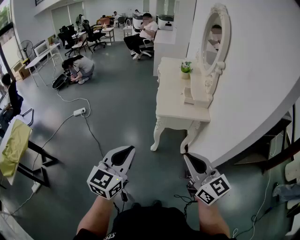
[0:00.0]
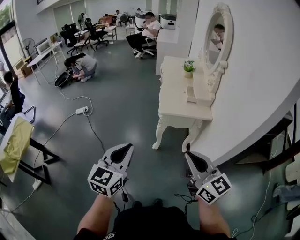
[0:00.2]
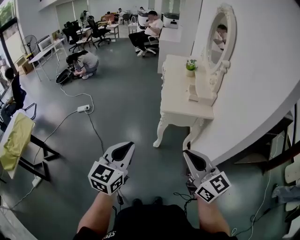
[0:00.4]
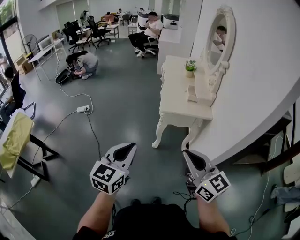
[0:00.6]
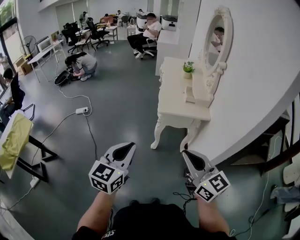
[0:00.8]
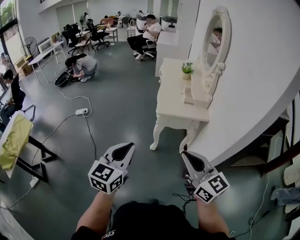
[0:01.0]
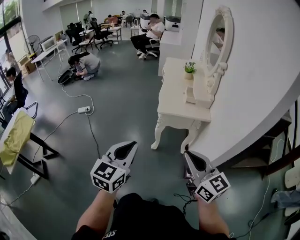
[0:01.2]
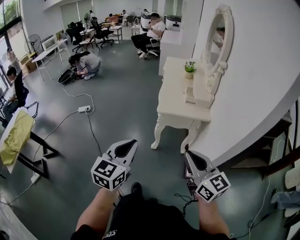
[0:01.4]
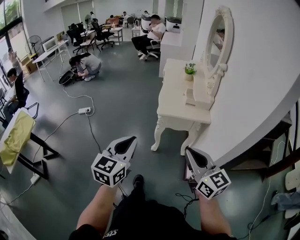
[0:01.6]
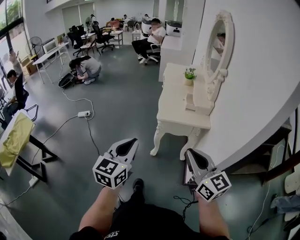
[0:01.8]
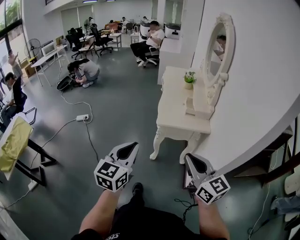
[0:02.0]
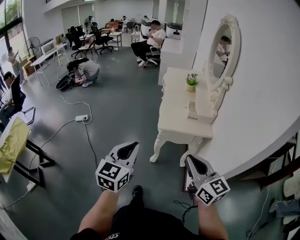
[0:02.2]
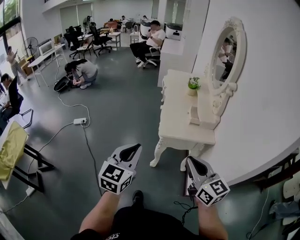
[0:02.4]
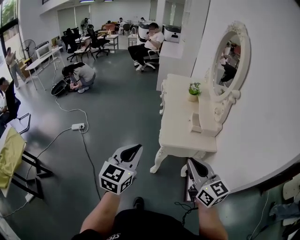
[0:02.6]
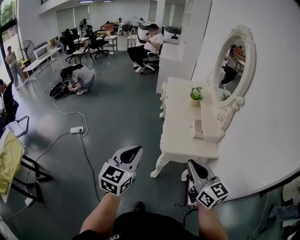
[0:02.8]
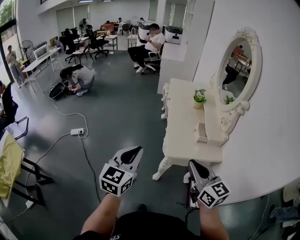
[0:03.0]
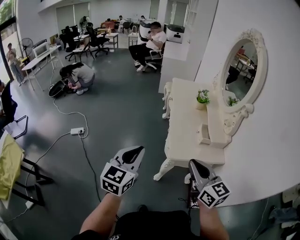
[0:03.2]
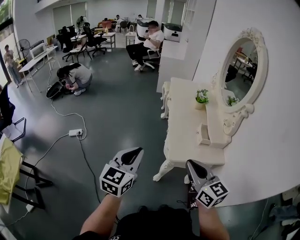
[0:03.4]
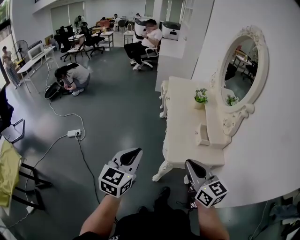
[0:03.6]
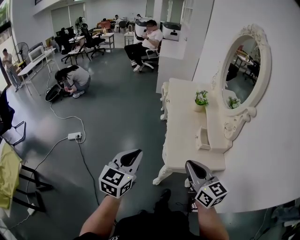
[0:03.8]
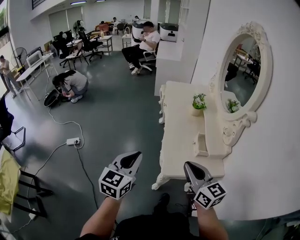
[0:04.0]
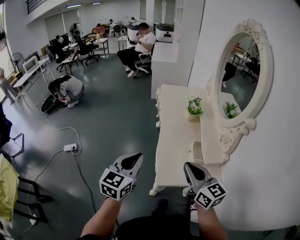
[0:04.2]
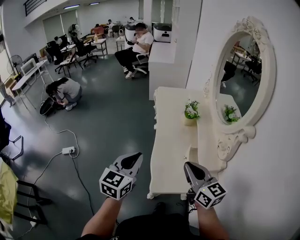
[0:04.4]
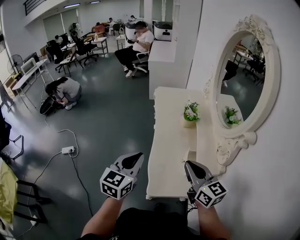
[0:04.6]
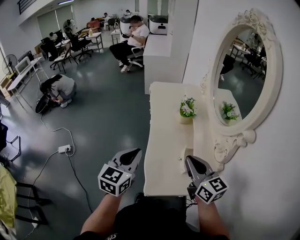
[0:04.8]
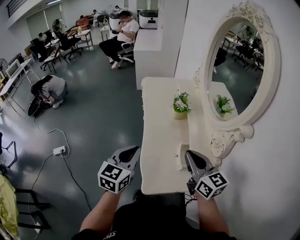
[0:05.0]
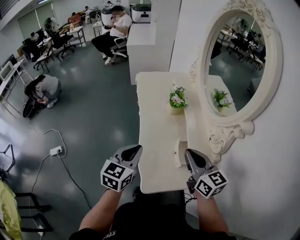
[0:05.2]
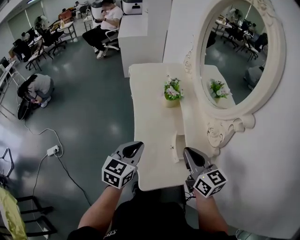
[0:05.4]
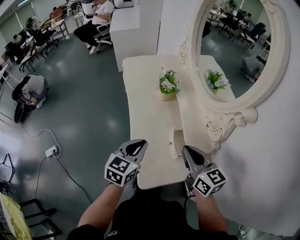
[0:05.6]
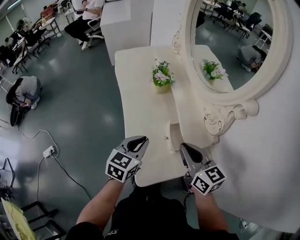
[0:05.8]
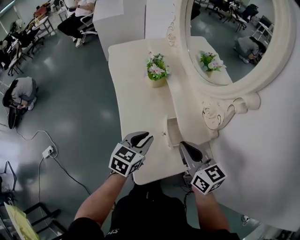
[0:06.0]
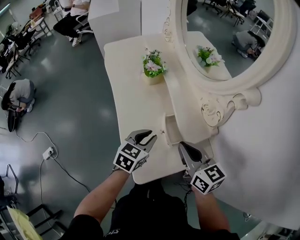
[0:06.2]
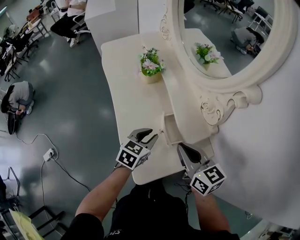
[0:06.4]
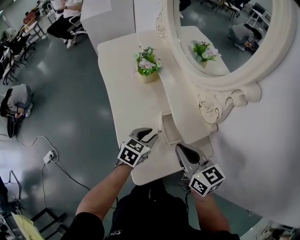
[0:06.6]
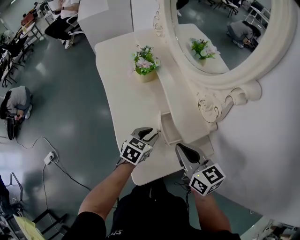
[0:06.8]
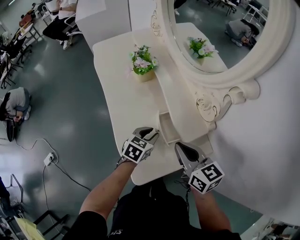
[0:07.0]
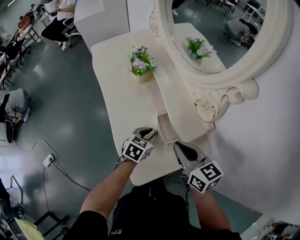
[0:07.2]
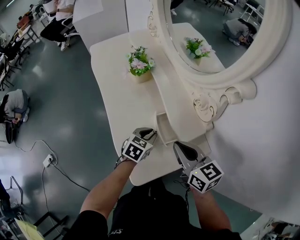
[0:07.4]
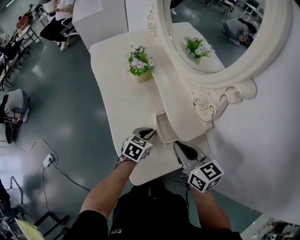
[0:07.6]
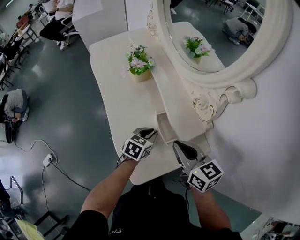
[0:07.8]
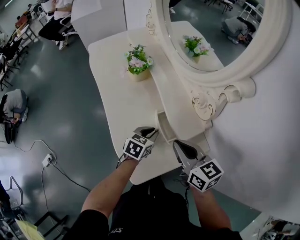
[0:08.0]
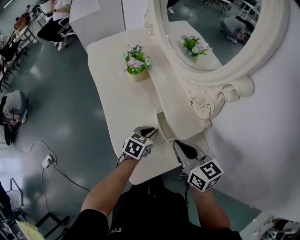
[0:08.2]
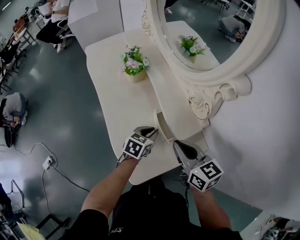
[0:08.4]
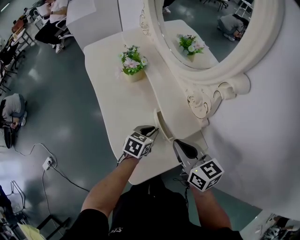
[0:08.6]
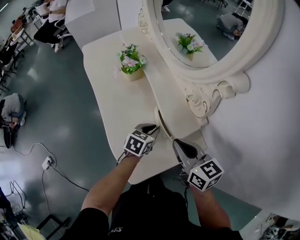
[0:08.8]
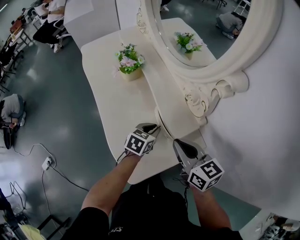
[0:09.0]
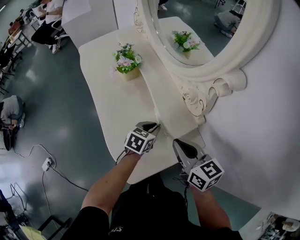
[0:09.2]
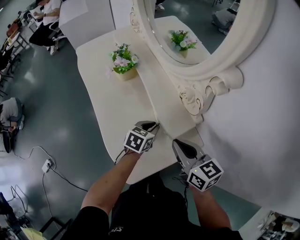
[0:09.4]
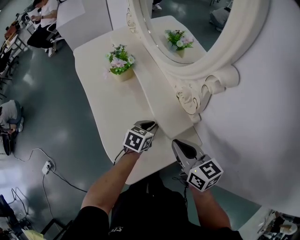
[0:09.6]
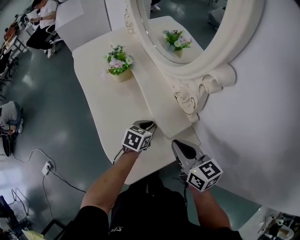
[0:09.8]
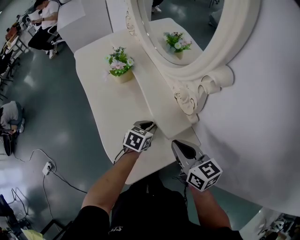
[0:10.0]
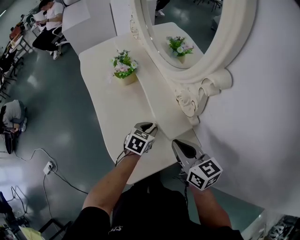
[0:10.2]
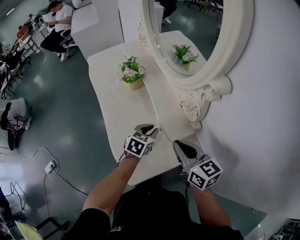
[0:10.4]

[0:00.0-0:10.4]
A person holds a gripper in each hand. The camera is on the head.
0:00.0 to 0:01.4: There are only small adjustments of the grippers.
0:01.4 to 0:03.0: The grippers both shift forward by approximately 30 cm.
0:03.0 to 0:04.4: The right gripper shifts about 25 cm forward, while the left gripper shifts some 30 cm forward and to the right.
0:04.4 to 0:06.0: The left gripper is displaced downward, to the right and forward by about 25 cm, and swivels about 30 degrees; the right gripper heads downward, forward and to the right, covering roughly 15 cm, and turns by some 20 degrees.
0:06.0 to 0:07.4: The left gripper goes some 15 cm downward and to the right.
0:07.4 to 0:09.0: The left gripper changes place by about 5 cm.
0:09.0 to 0:10.4: The grippers make only small movements.

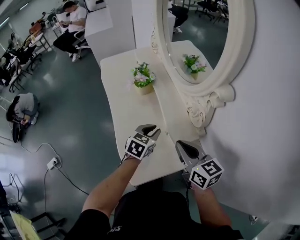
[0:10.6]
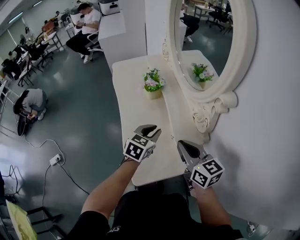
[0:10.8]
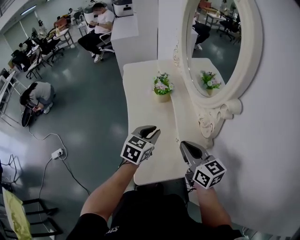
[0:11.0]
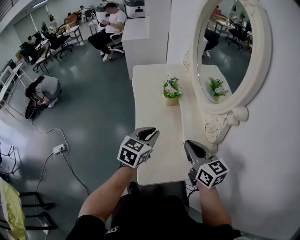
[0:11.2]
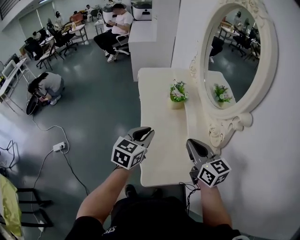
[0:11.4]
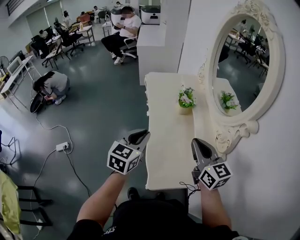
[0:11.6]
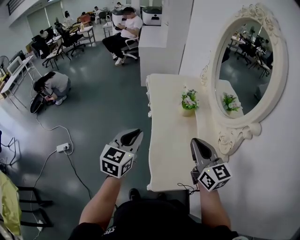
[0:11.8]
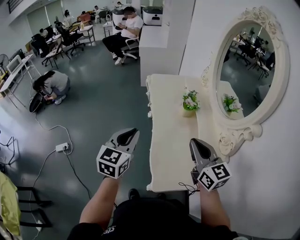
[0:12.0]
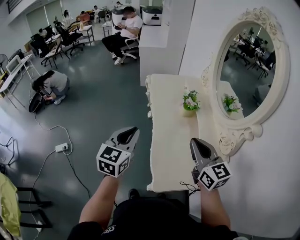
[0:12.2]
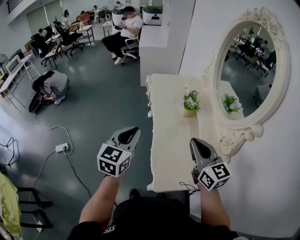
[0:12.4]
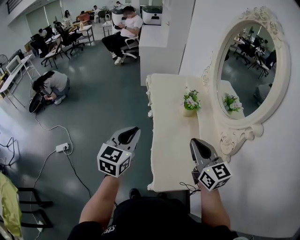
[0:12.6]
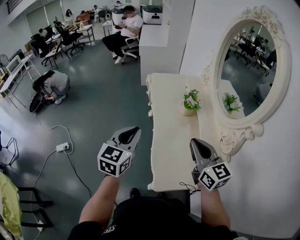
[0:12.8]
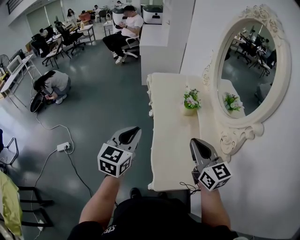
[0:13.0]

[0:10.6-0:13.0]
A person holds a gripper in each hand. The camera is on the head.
0:10.6 to 0:11.8: The right gripper goes roughly 15 cm to the left and upward, and changes its angle by about 20 degrees. The left gripper is displaced to the left and upward by approximately 35 cm, and turns by some 40 degrees.
0:11.8 to 0:13.0: The grippers move only a little.

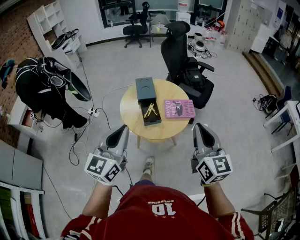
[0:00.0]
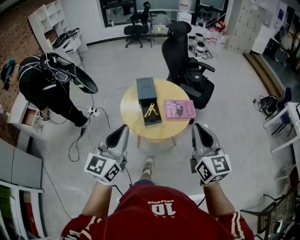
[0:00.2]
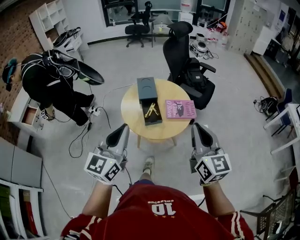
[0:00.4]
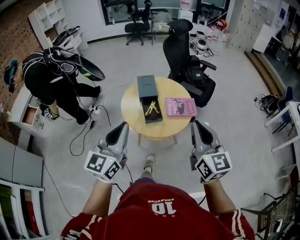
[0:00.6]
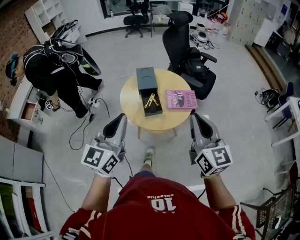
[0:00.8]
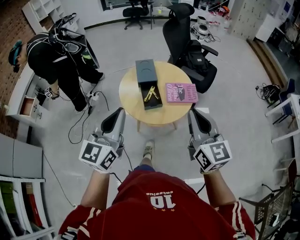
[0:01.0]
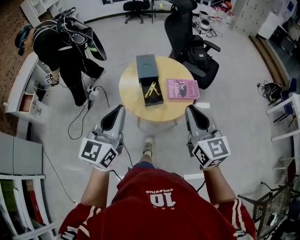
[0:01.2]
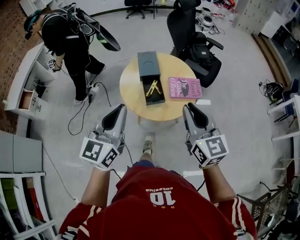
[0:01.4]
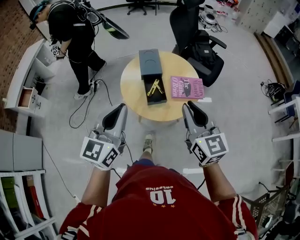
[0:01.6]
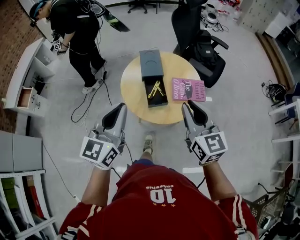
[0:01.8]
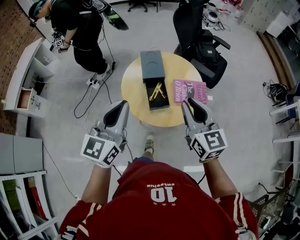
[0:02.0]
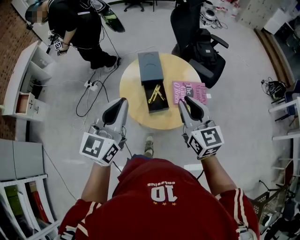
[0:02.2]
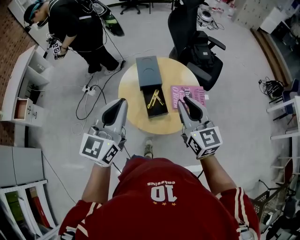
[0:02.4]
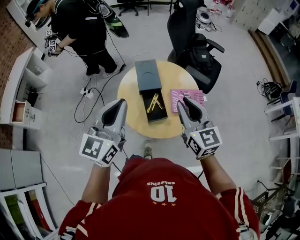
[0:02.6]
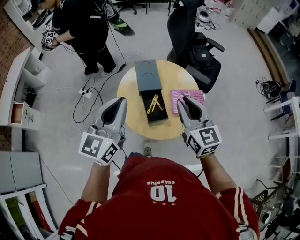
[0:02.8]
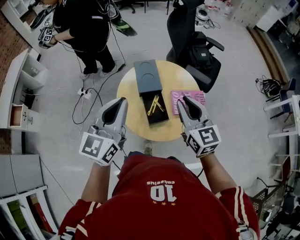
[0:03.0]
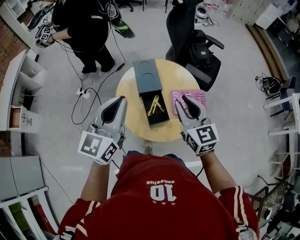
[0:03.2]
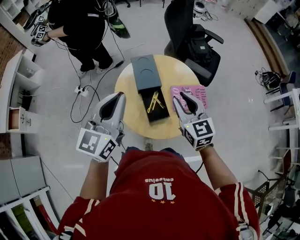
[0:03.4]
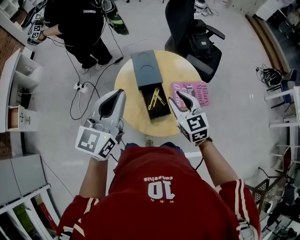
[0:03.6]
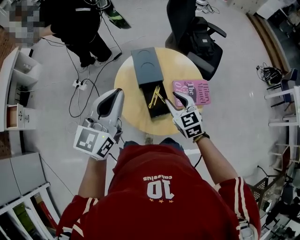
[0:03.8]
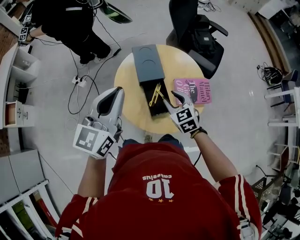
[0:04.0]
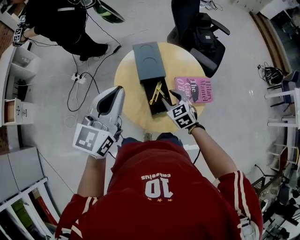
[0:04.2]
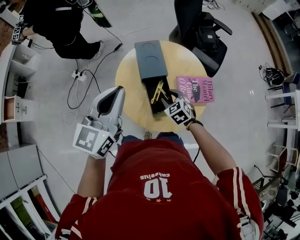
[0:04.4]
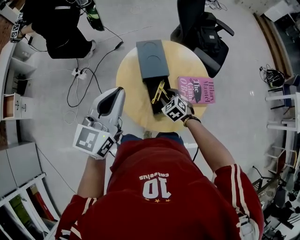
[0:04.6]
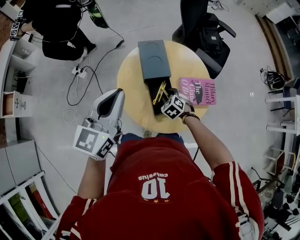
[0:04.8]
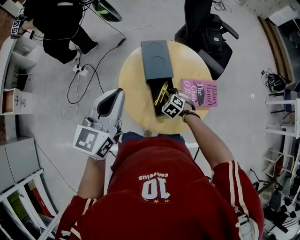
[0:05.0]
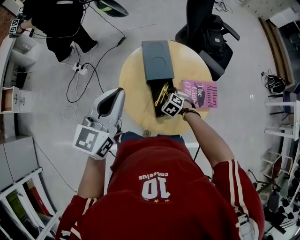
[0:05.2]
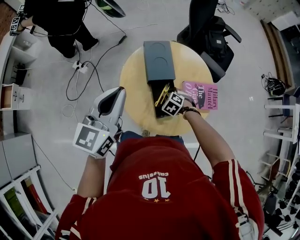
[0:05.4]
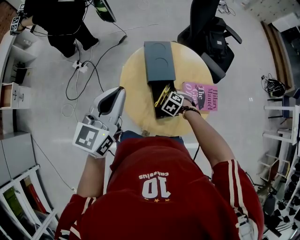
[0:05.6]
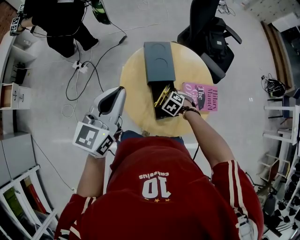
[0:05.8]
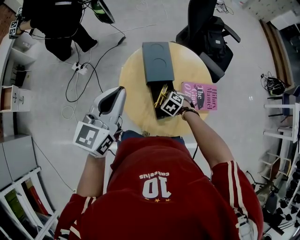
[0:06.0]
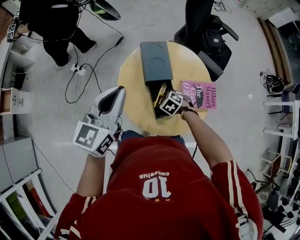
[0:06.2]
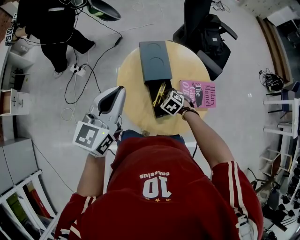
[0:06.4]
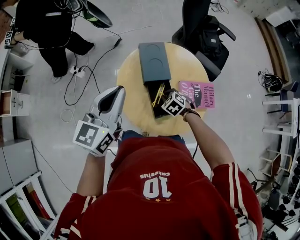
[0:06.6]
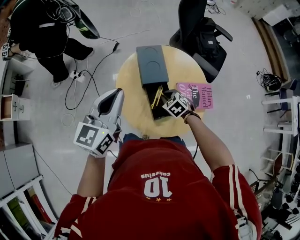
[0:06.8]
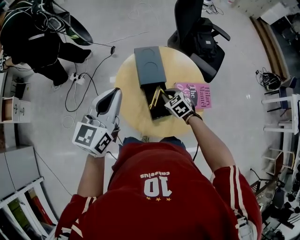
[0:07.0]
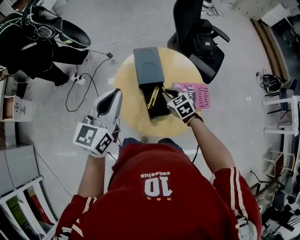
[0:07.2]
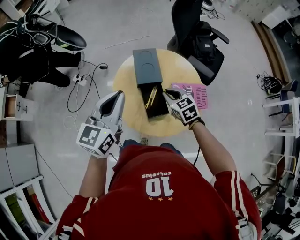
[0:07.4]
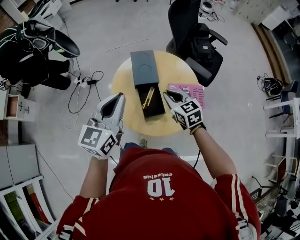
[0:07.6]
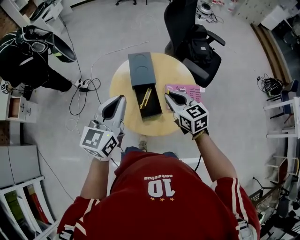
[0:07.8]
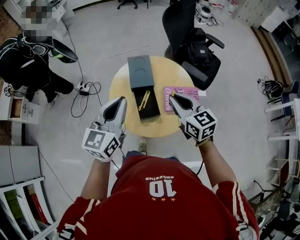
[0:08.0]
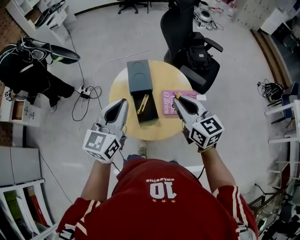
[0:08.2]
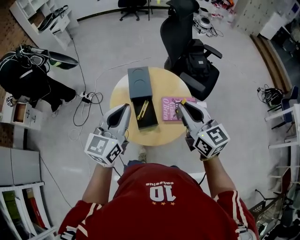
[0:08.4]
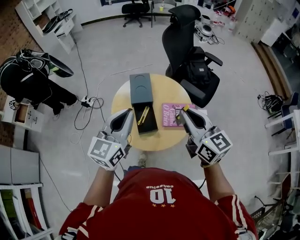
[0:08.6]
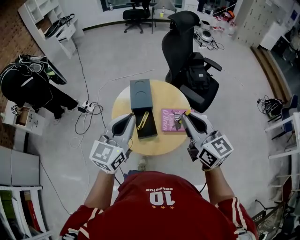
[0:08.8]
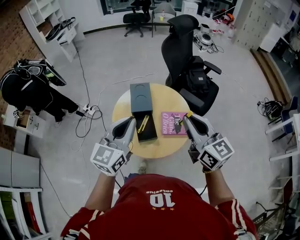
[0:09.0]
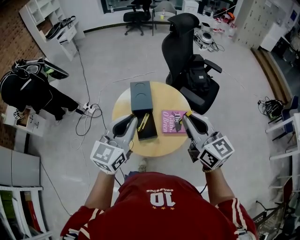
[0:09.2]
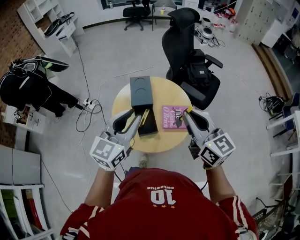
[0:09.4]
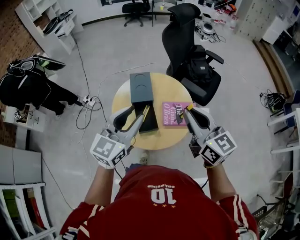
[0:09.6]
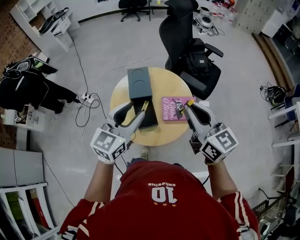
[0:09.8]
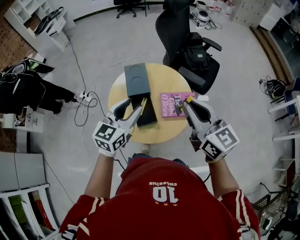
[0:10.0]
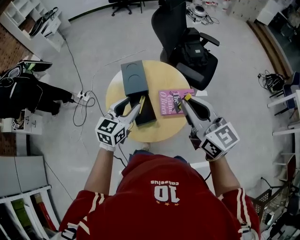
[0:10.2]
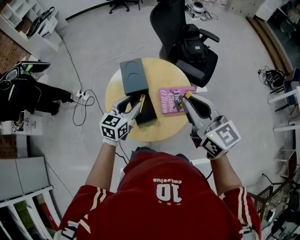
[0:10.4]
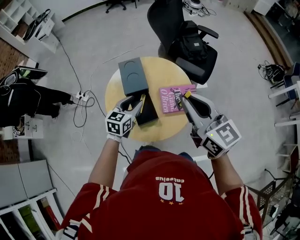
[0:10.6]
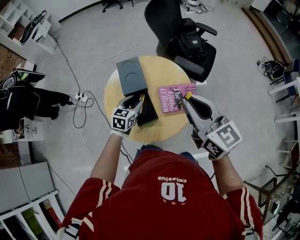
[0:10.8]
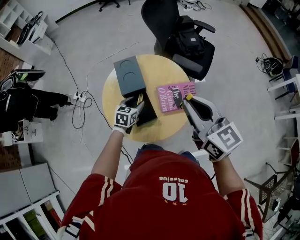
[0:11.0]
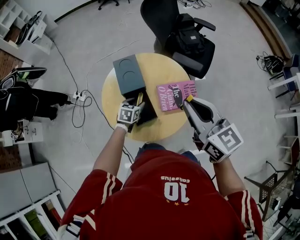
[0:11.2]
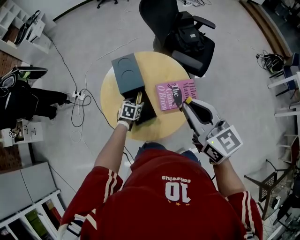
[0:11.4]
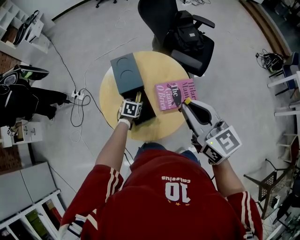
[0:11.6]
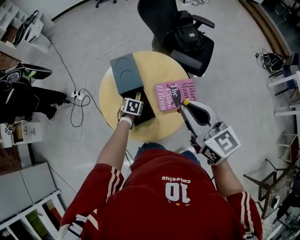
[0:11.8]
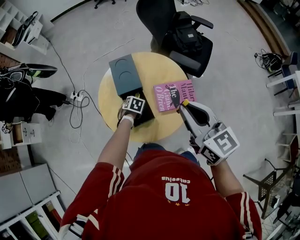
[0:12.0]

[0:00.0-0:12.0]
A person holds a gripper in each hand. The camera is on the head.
0:00.0 to 0:01.6: The right gripper goes some 10 cm forward, to the left and downward; the left gripper goes approximately 5 cm forward.
0:01.6 to 0:03.0: Both grippers move forward, roughly 15 cm.
0:03.0 to 0:04.4: The left gripper travels downward by roughly 5 cm; the right gripper moves downward, about 30 cm, angles its fingers downward, by roughly 40 degrees, and opens up.
0:04.4 to 0:06.0: The right gripper heads downward, covering approximately 10 cm, swivels approximately 30 degrees, and closes up, while the left gripper ends up about 5 cm from where it was.
0:06.0 to 0:07.6: The right gripper travels upward by roughly 25 cm, and tilts its fingers about 40 degrees upward; the left gripper ends up approximately 10 cm from where it was.
0:07.6 to 0:09.0: The left gripper heads to the right, upward and backward, covering roughly 10 cm. Meanwhile the right gripper heads upward, to the right and backward, covering some 30 cm, and points its fingers roughly 30 degrees further upward.
0:09.0 to 0:10.4: The left gripper goes about 20 cm downward and forward, turns by some 20 degrees, and opens its fingers.
0:10.4 to 0:12.0: The left gripper shifts some 30 cm downward, and angles its fingers downward, by some 50 degrees.
